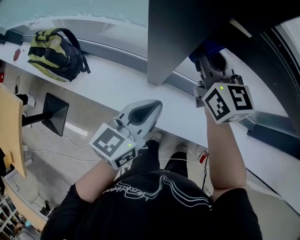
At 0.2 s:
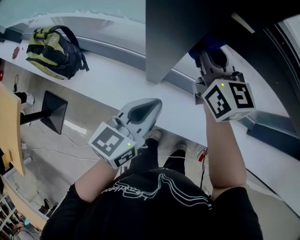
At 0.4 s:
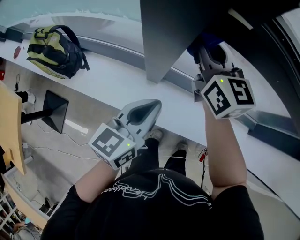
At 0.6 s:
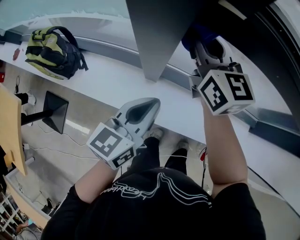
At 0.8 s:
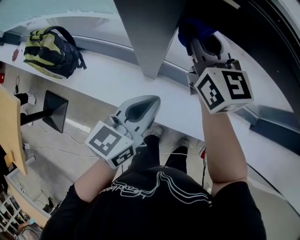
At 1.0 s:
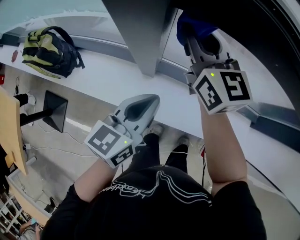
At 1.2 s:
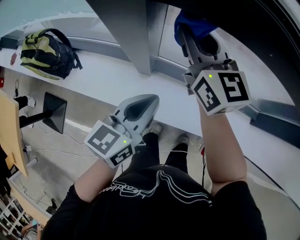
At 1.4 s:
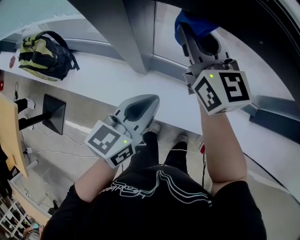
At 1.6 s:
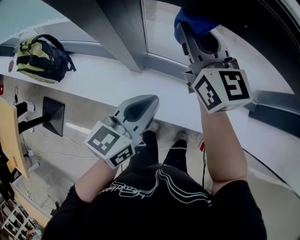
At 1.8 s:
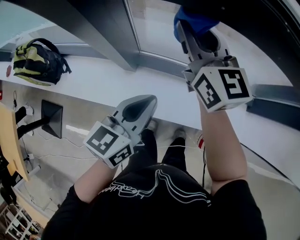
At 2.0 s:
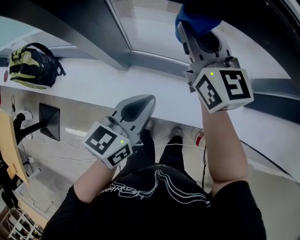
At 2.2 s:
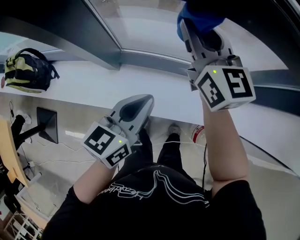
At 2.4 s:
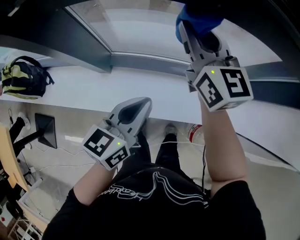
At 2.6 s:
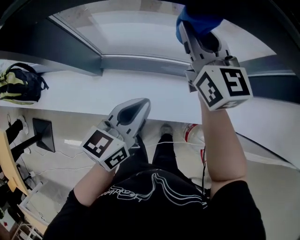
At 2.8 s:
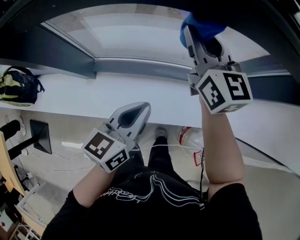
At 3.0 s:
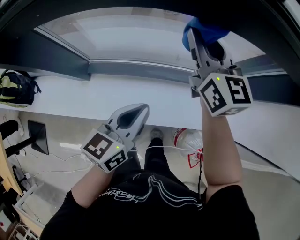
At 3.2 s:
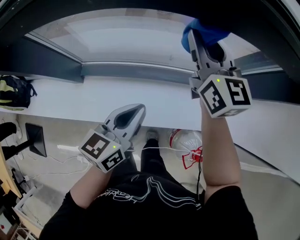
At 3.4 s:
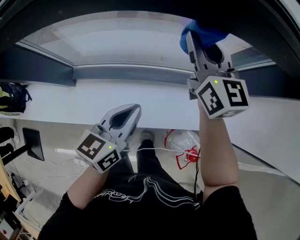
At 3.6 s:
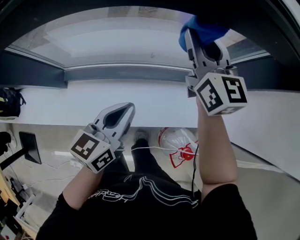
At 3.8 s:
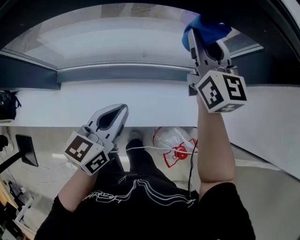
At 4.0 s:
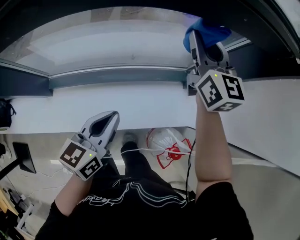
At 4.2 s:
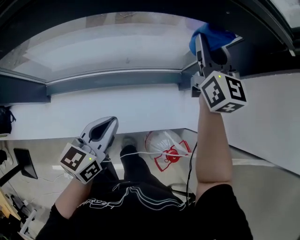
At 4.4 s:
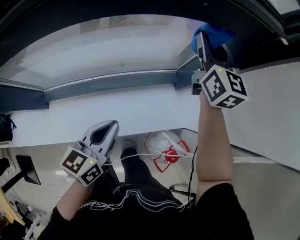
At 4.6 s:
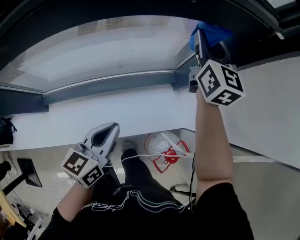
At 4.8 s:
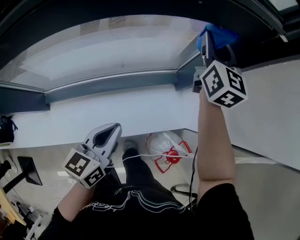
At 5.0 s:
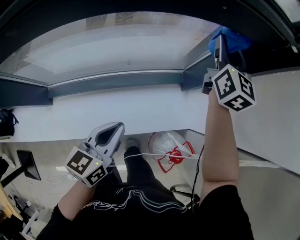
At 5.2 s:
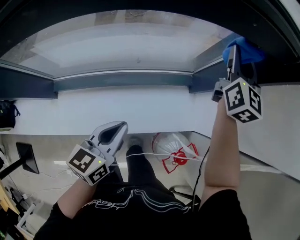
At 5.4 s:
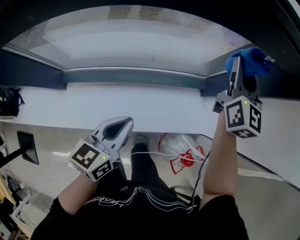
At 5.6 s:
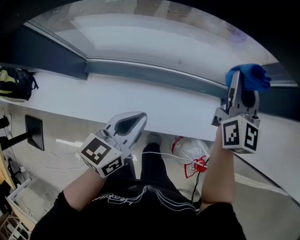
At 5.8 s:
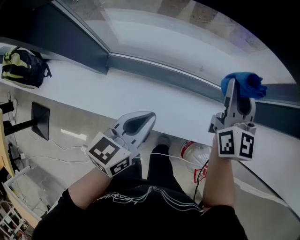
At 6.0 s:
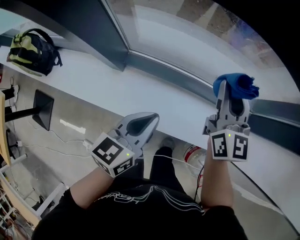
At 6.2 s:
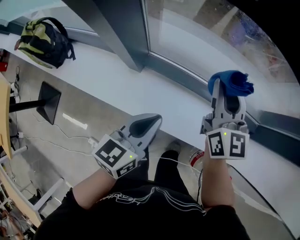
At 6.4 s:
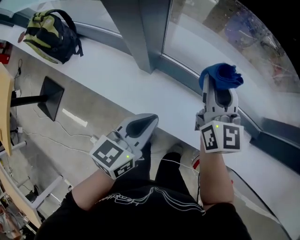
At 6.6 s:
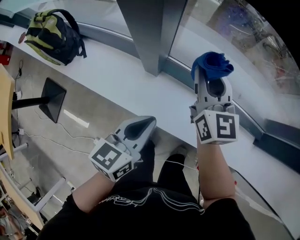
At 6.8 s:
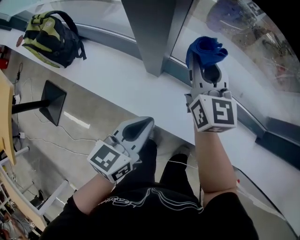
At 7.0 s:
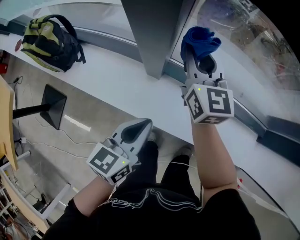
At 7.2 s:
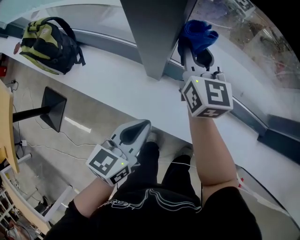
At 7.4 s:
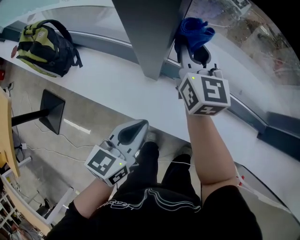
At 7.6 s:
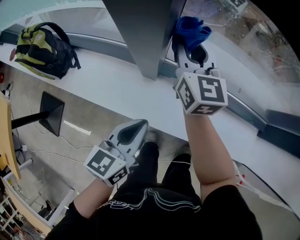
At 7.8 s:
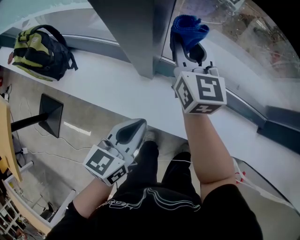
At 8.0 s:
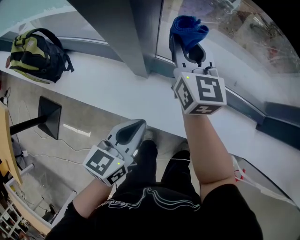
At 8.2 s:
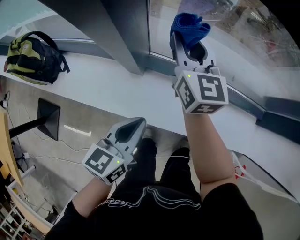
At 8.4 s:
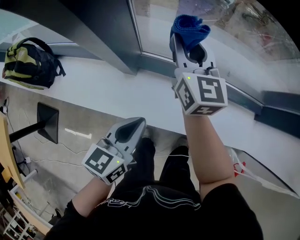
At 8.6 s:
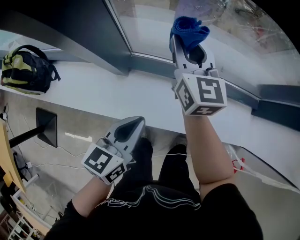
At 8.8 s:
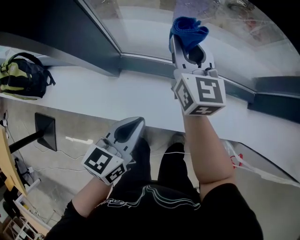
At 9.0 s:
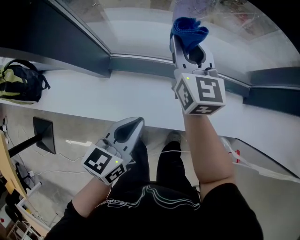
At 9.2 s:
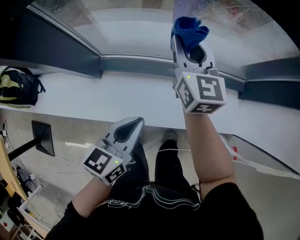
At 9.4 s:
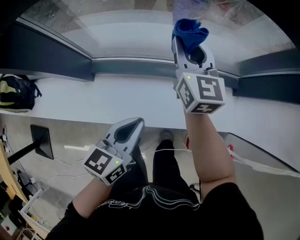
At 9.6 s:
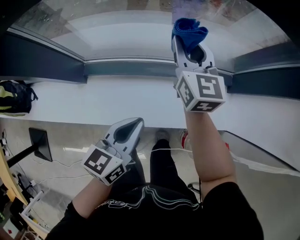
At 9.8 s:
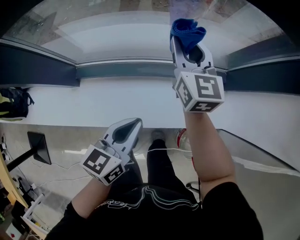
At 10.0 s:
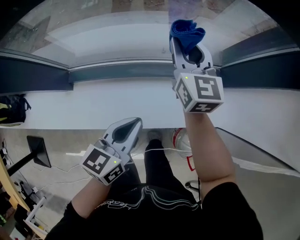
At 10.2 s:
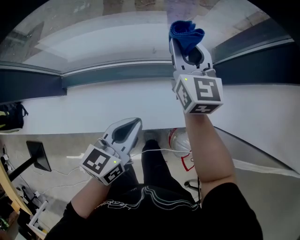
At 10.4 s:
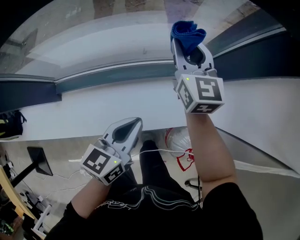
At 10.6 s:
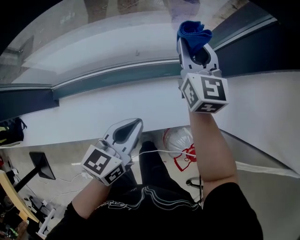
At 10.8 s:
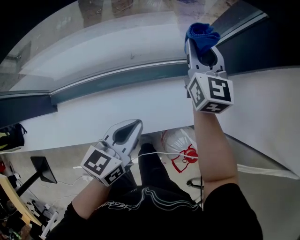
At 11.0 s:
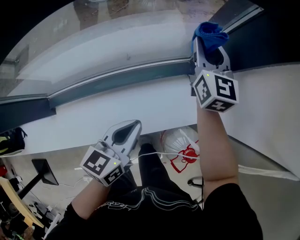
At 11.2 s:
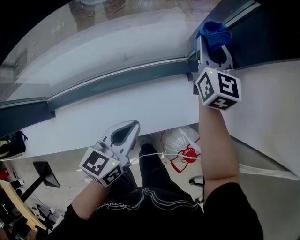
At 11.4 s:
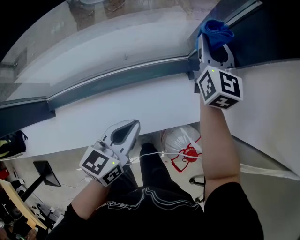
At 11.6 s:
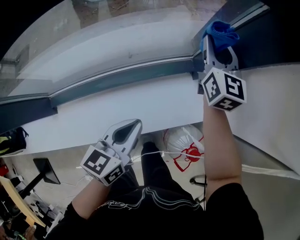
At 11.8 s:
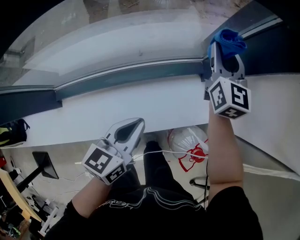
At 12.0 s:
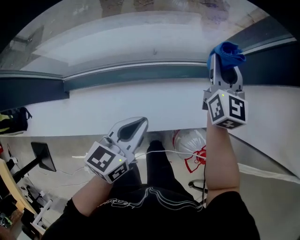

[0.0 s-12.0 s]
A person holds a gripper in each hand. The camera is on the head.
0.0 to 1.6 s: Both grippers move to the right, some 10 cm.
1.6 to 3.0 s: Both grippers travel together to the right, about 30 cm.
3.0 to 4.4 s: The right gripper shifts roughly 30 cm to the right, and changes its angle by about 20 degrees. Meanwhile the left gripper shifts about 15 cm to the right.
4.4 to 6.0 s: The right gripper moves to the left and backward, approximately 40 cm, and turns by about 20 degrees. Meanwhile the left gripper shifts approximately 25 cm to the left.
6.0 to 7.6 s: The right gripper shifts about 35 cm to the left. The left gripper travels to the left by some 25 cm.
7.6 to 9.0 s: The two grippers go roughly 25 cm to the right.
9.0 to 10.4 s: Both grippers travel together to the right, roughly 30 cm.
10.4 to 12.0 s: The right gripper heads to the right, covering some 10 cm.

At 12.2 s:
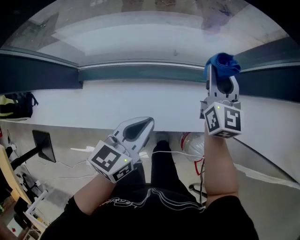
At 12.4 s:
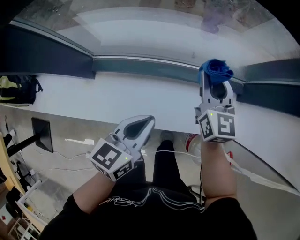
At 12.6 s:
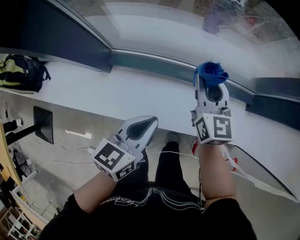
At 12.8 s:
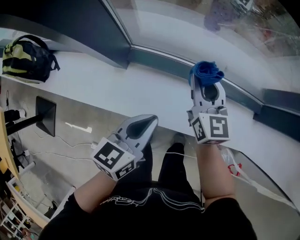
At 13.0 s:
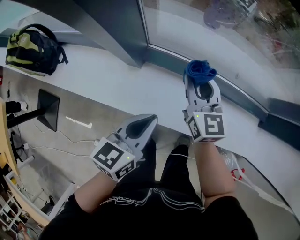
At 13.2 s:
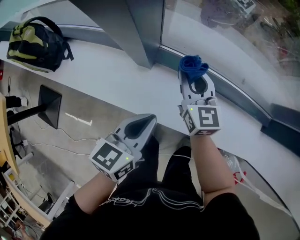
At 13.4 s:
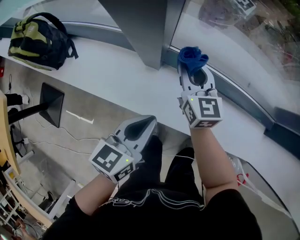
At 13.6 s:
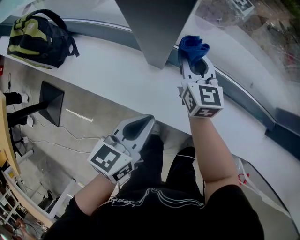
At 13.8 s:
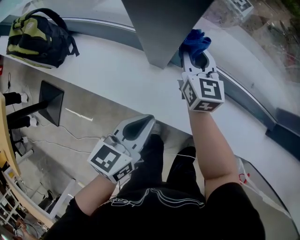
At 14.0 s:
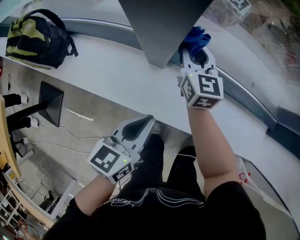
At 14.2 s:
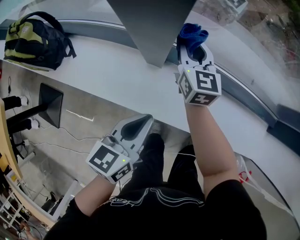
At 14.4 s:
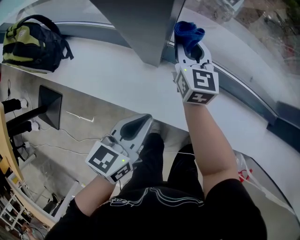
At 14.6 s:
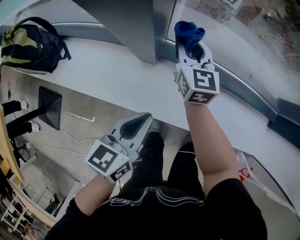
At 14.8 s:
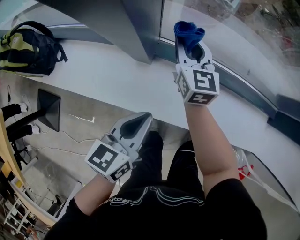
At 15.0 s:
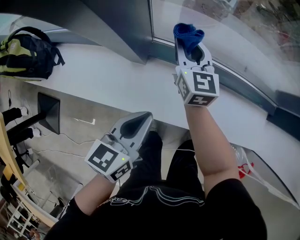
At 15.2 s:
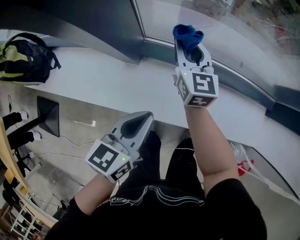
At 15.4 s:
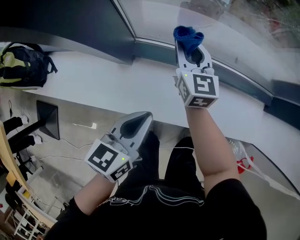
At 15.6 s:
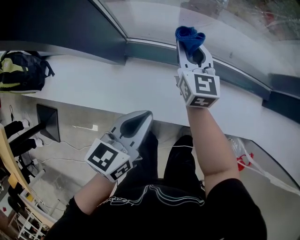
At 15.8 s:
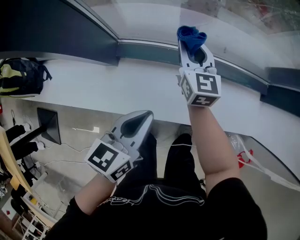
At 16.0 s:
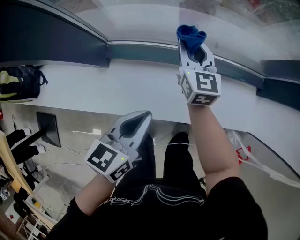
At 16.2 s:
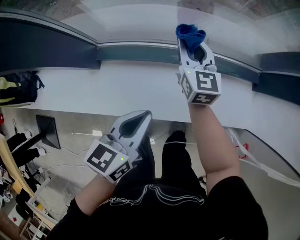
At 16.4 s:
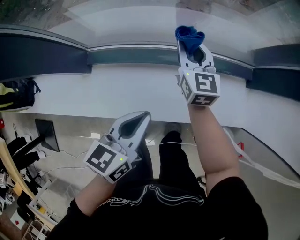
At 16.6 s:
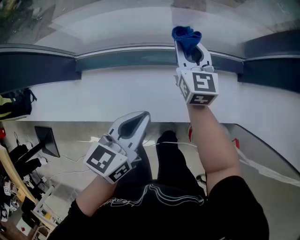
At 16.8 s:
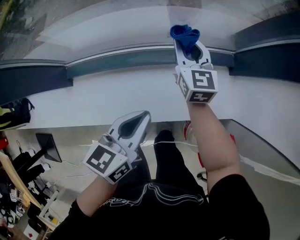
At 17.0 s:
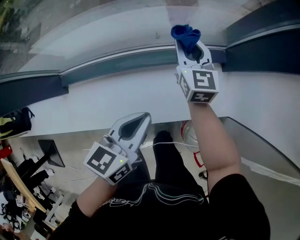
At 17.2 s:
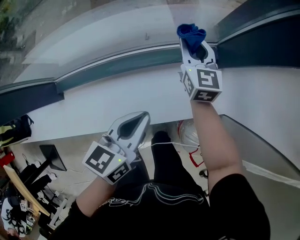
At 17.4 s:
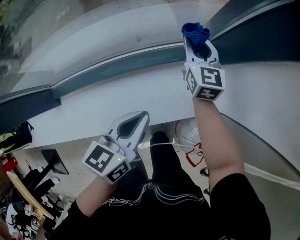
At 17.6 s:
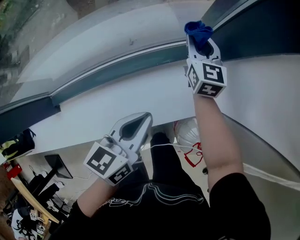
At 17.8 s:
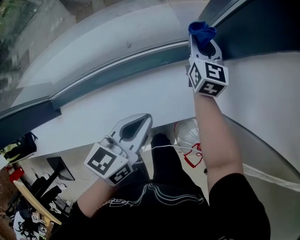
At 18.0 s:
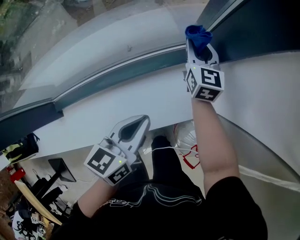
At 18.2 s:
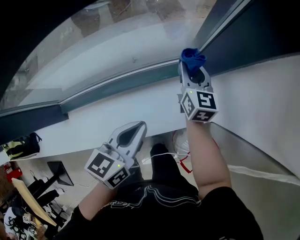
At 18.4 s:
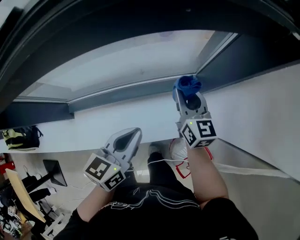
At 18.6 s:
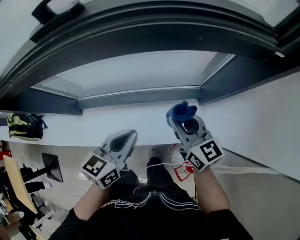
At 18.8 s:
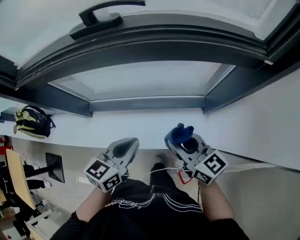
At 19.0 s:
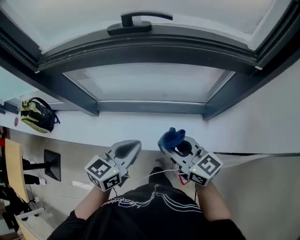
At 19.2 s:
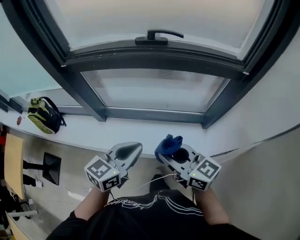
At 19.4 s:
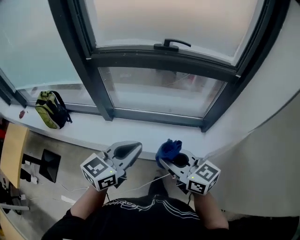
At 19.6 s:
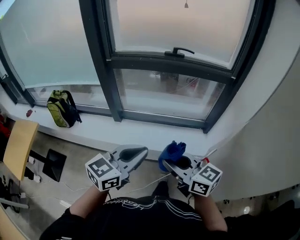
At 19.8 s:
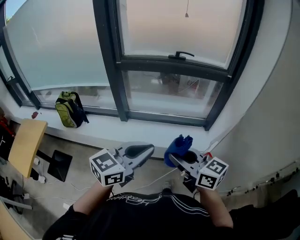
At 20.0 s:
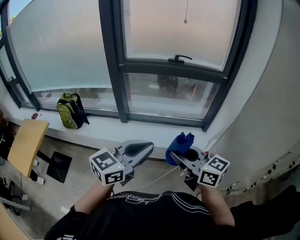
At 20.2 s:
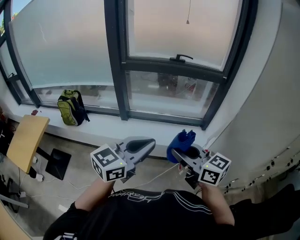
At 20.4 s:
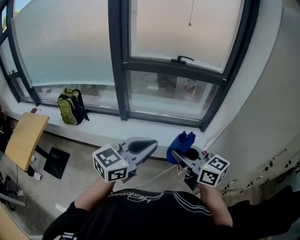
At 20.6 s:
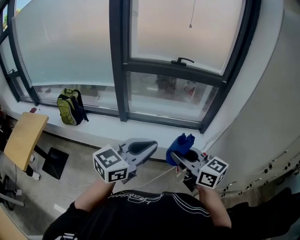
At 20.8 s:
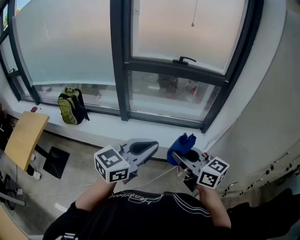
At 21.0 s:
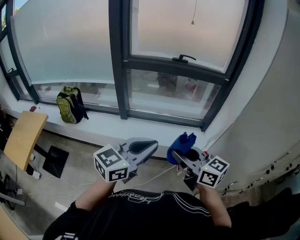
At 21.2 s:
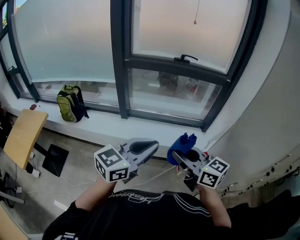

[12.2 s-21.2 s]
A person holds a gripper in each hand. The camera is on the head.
12.2 to 13.8 s: Both grippers are carried about 50 cm. The left gripper changes its angle by some 20 degrees; the right gripper turns by about 30 degrees.
13.8 to 15.2 s: The grippers both shift to the right by approximately 10 cm.
15.2 to 16.6 s: Both grippers travel together to the right, some 35 cm.
16.6 to 18.2 s: The right gripper is displaced to the right by roughly 30 cm, and changes its angle by approximately 20 degrees, while the left gripper moves to the right and forward, approximately 20 cm.
18.2 to 19.8 s: Both grippers are carried some 60 cm. The left gripper rotates roughly 30 degrees. Meanwhile the right gripper changes its angle by roughly 60 degrees.
19.8 to 21.2 s: The left gripper changes place by approximately 5 cm, while the right gripper moves some 5 cm.

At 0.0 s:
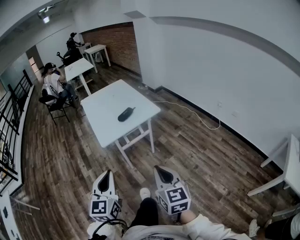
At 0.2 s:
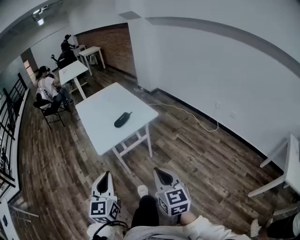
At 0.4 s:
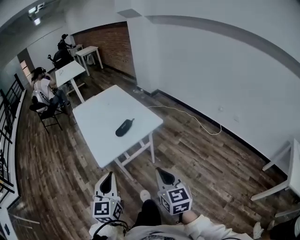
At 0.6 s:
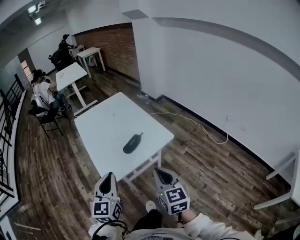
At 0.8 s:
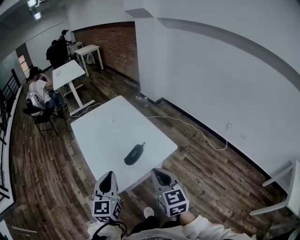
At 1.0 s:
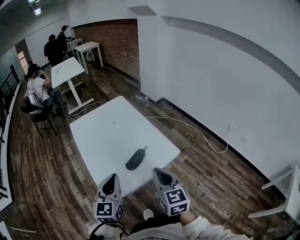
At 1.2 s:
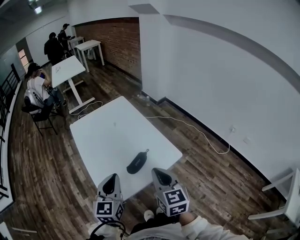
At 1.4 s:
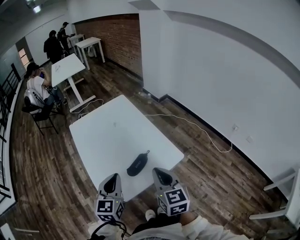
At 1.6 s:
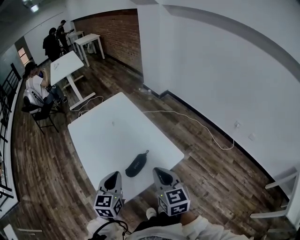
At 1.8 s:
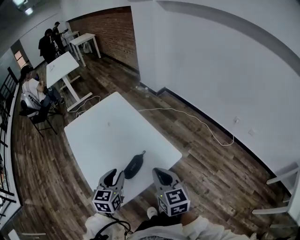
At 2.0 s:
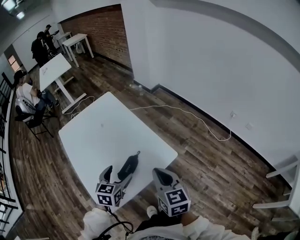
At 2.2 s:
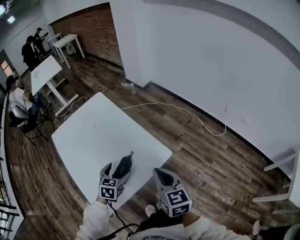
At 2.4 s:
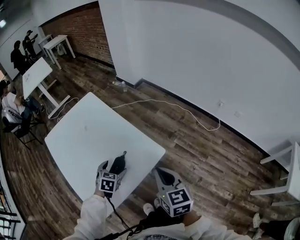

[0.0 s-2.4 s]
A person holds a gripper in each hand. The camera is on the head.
0.0 to 1.2 s: Both grippers are carried forward, about 50 cm.
1.2 to 2.4 s: The left gripper travels downward, forward and to the right by some 30 cm, tilts its fingers some 40 degrees downward, and opens; the right gripper heads to the right and downward, covering about 15 cm.
